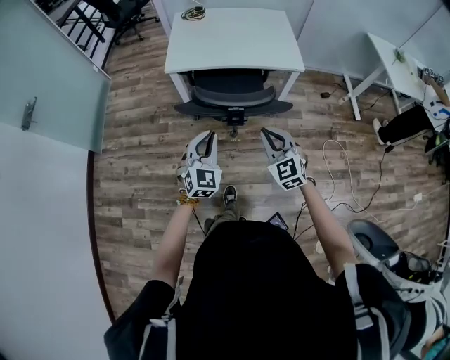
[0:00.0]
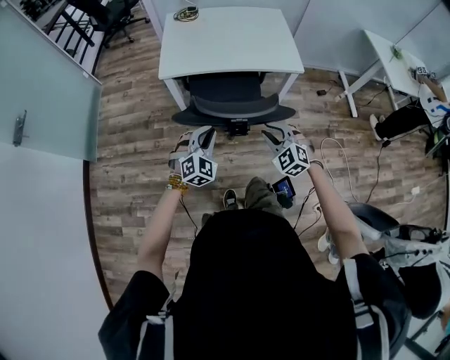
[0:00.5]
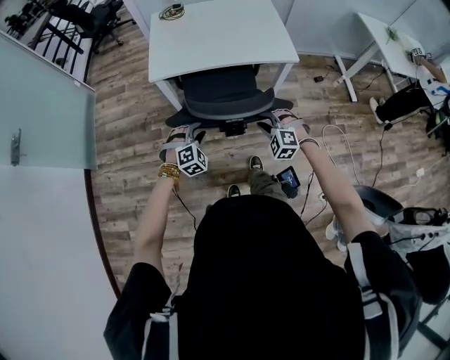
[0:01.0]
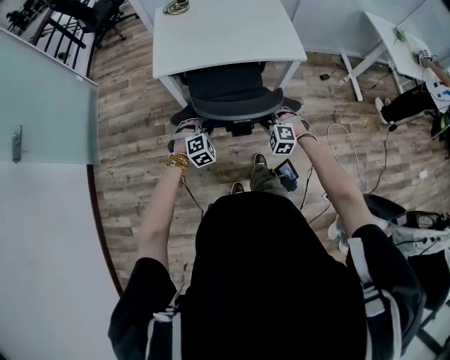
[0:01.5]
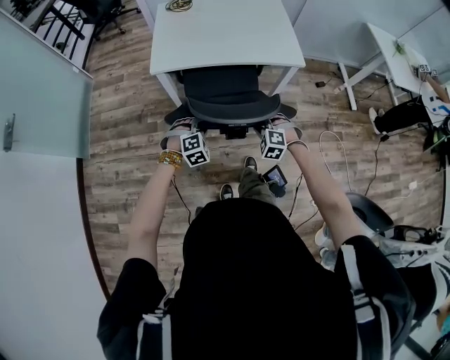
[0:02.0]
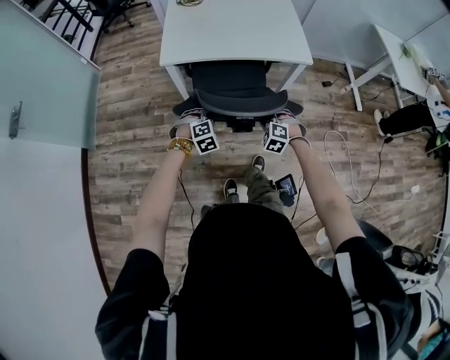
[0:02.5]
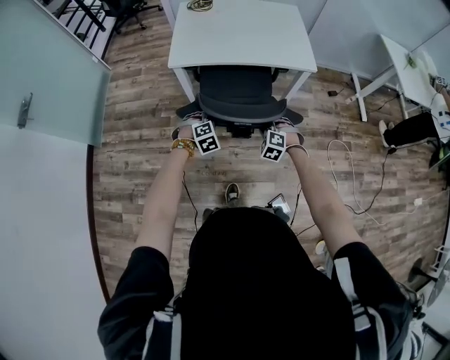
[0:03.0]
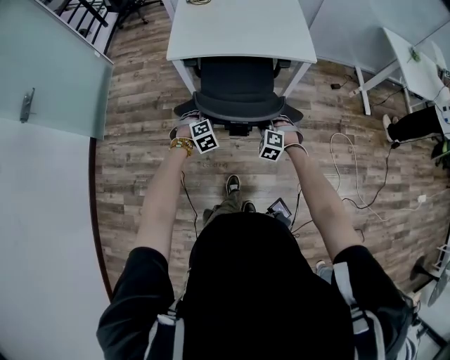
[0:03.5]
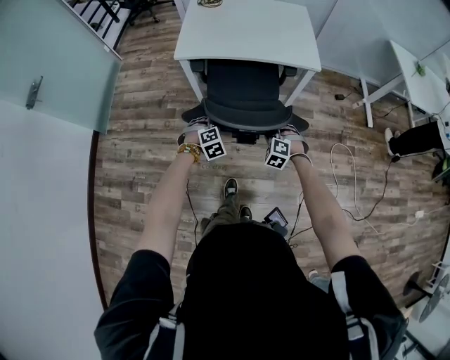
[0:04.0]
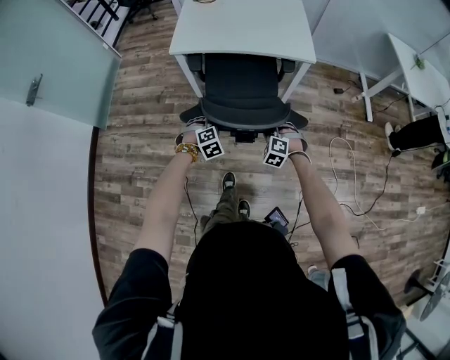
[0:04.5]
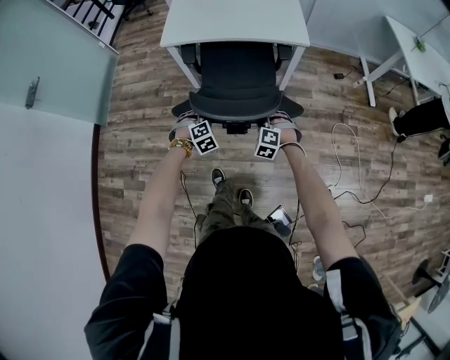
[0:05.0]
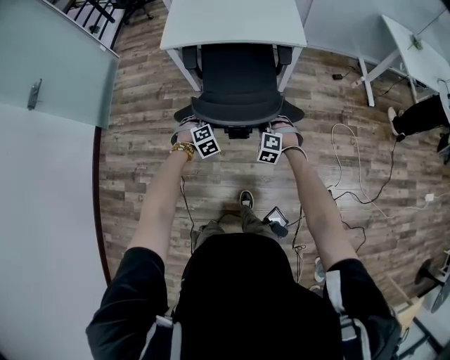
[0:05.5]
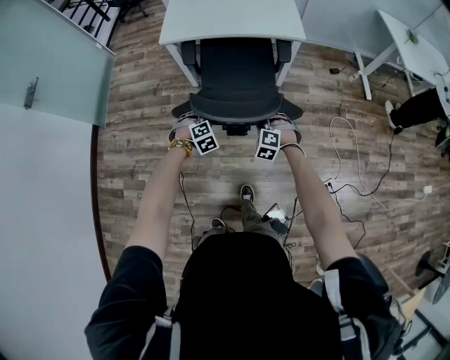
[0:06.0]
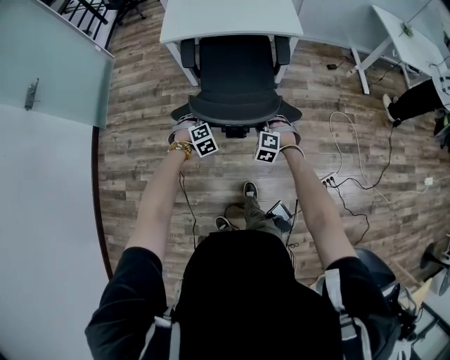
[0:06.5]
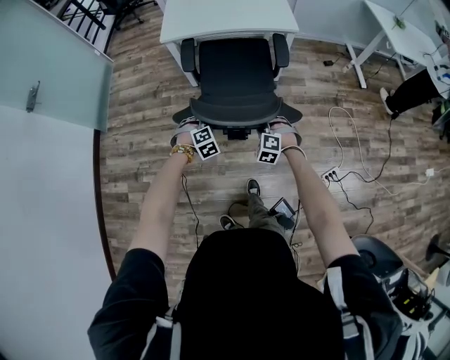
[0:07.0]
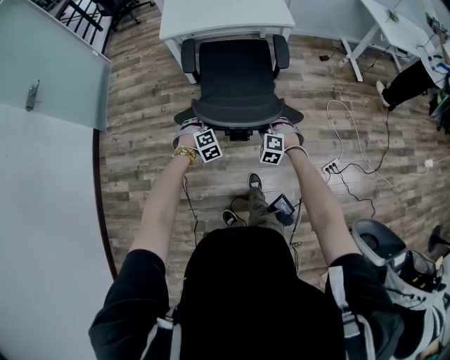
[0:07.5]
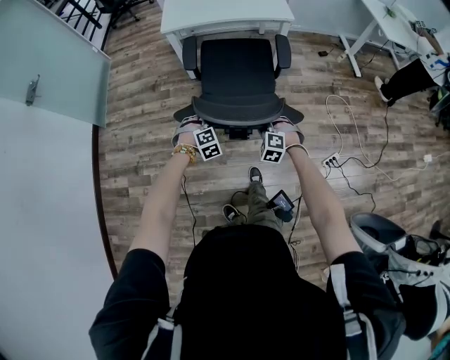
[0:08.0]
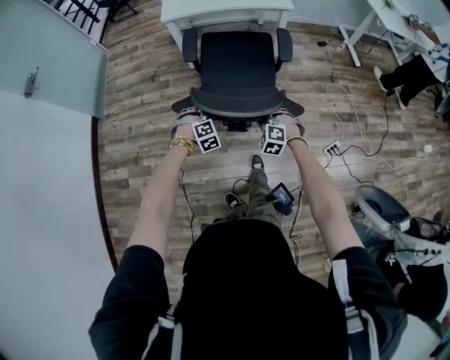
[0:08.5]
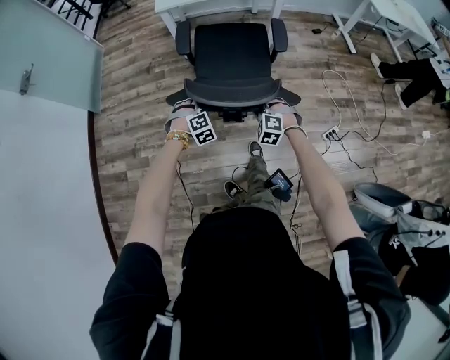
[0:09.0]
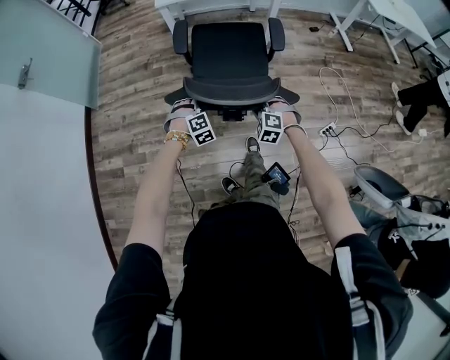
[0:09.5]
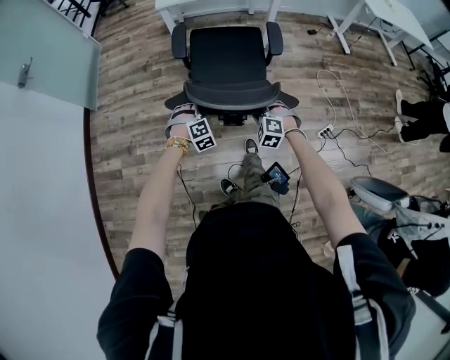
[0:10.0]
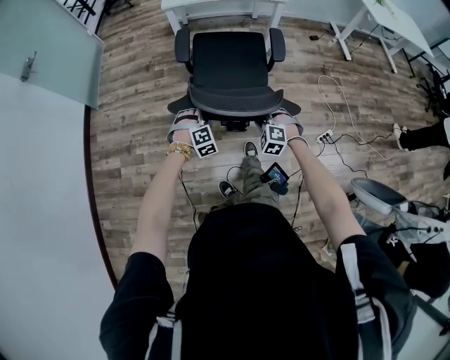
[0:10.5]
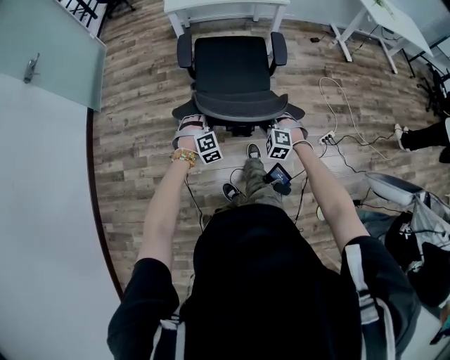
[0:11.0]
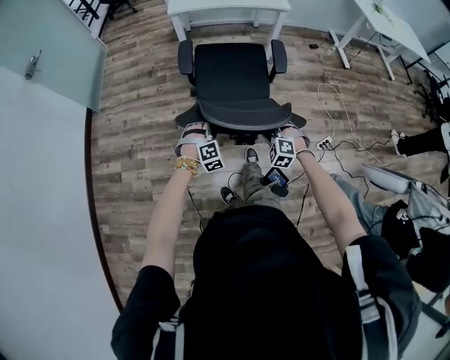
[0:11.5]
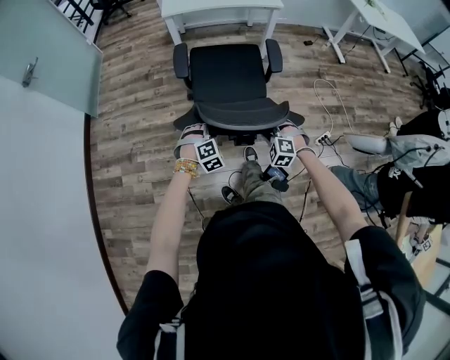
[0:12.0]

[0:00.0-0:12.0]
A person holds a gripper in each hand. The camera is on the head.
0:00.0 to 0:02.0: The two grippers go roughly 25 cm downward and forward. The right gripper tilts its fingers approximately 30 degrees downward. The left gripper angles its fingers downward, by some 40 degrees, and opens its fingers.
0:02.0 to 0:04.0: Both grippers travel together backward, approximately 10 cm.
0:04.0 to 0:06.0: Both grippers travel together backward, roughly 10 cm.
0:06.0 to 0:08.0: The two grippers go approximately 15 cm backward.
0:08.0 to 0:10.0: Both grippers travel together backward and to the left, roughly 15 cm.
0:10.0 to 0:12.0: Both grippers move backward, roughly 10 cm.

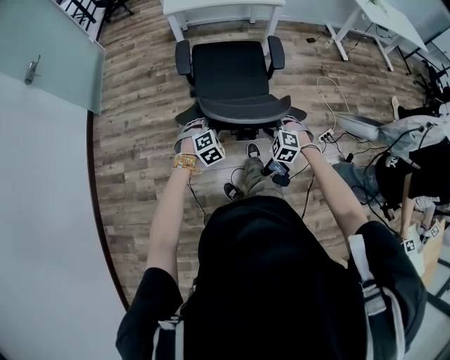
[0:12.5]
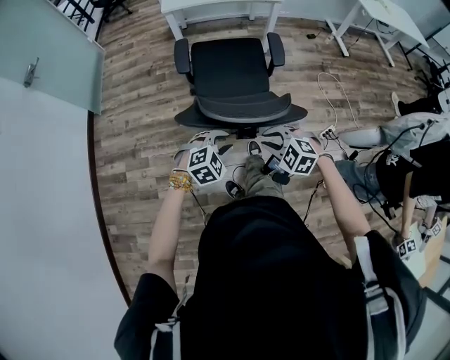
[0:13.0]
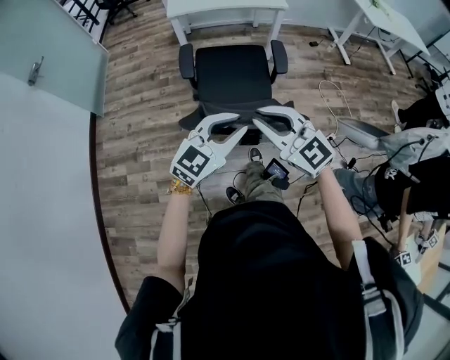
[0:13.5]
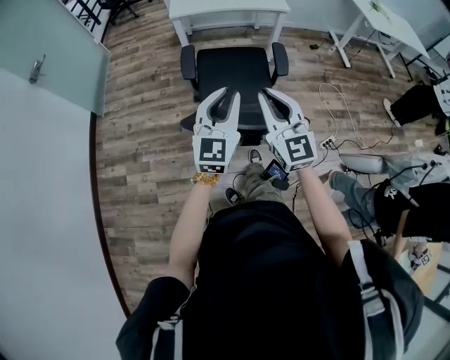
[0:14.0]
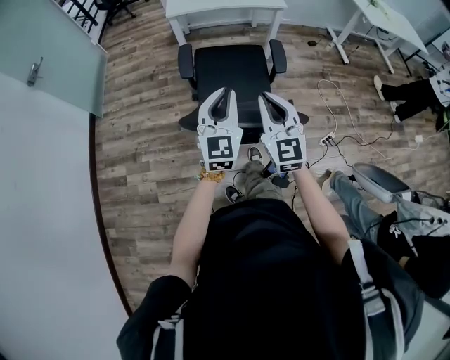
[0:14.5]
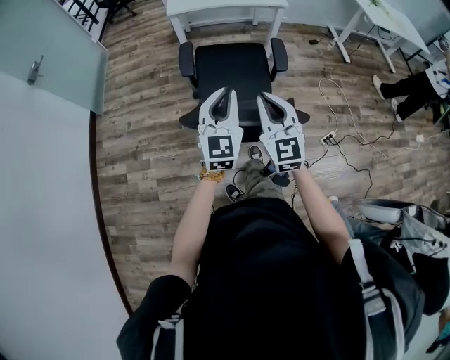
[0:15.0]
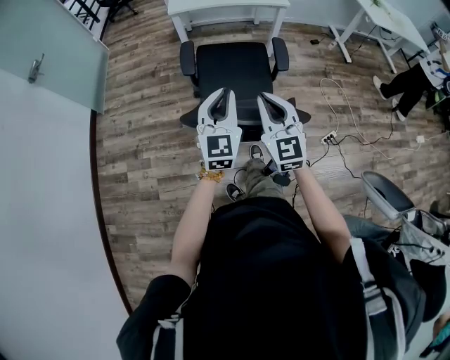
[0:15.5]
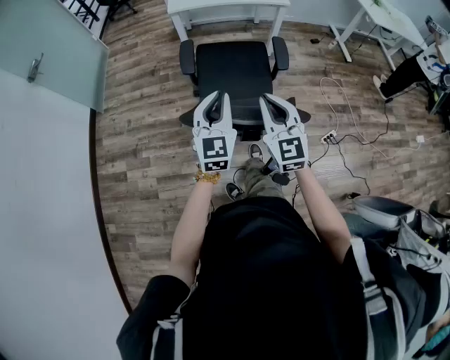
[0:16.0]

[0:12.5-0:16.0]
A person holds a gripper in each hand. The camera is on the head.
0:12.5 to 0:14.5: Both grippers move upward, roughly 30 cm. The right gripper tips its fingers upward by approximately 50 degrees, and closes its fingers. The left gripper tilts its fingers approximately 60 degrees upward, and closes.
0:14.5 to 0:16.0: There are only small adjustments of the grippers.

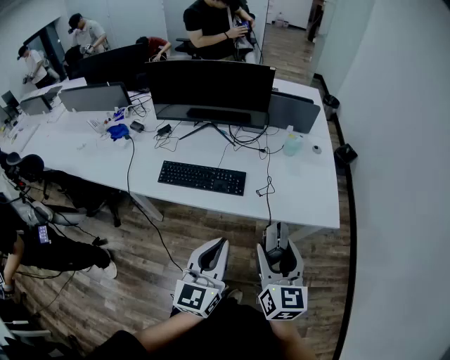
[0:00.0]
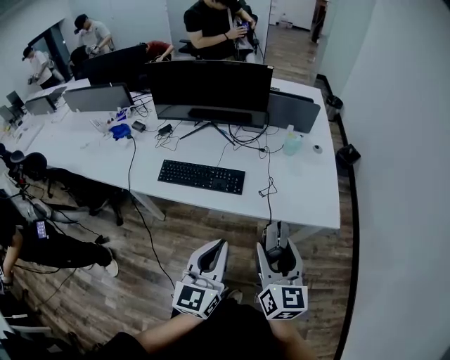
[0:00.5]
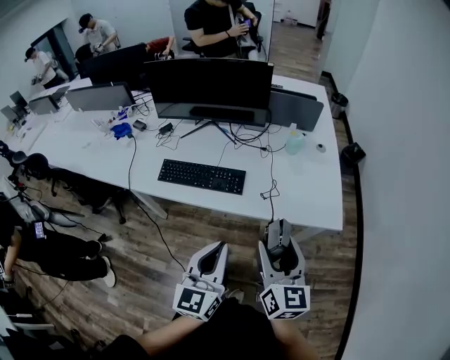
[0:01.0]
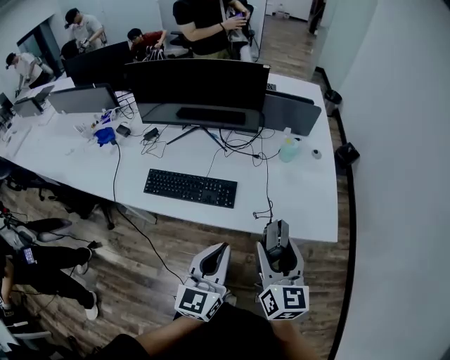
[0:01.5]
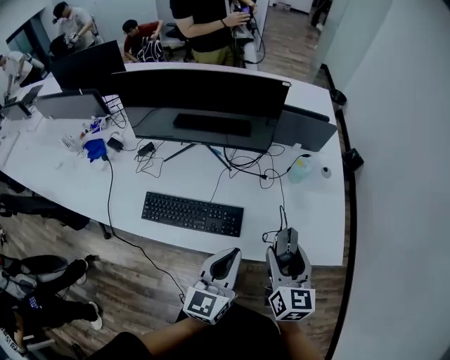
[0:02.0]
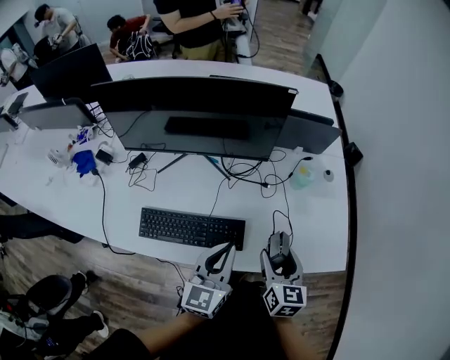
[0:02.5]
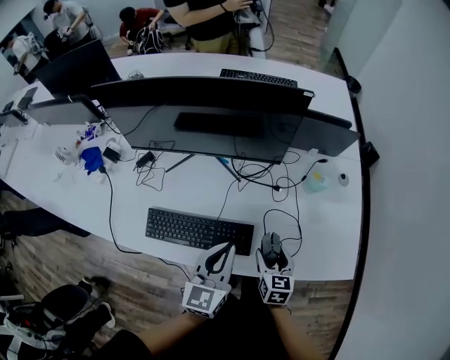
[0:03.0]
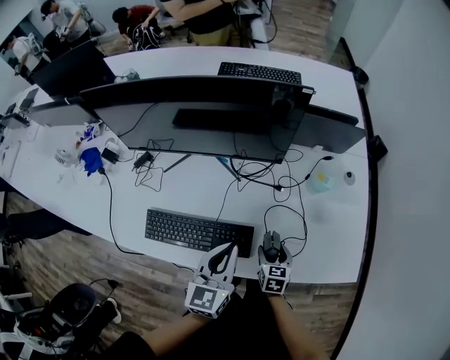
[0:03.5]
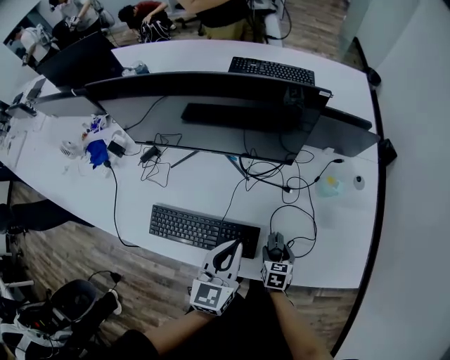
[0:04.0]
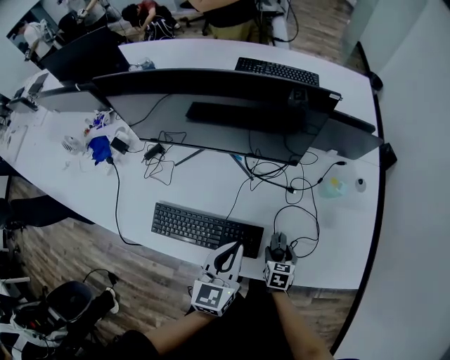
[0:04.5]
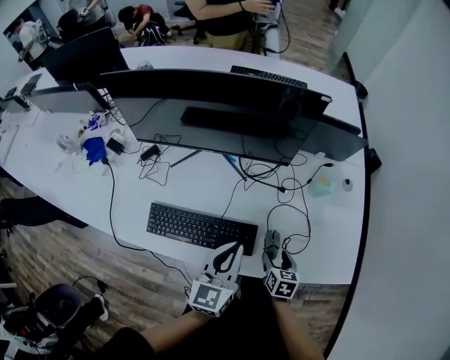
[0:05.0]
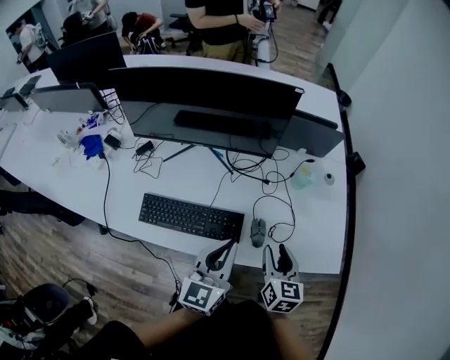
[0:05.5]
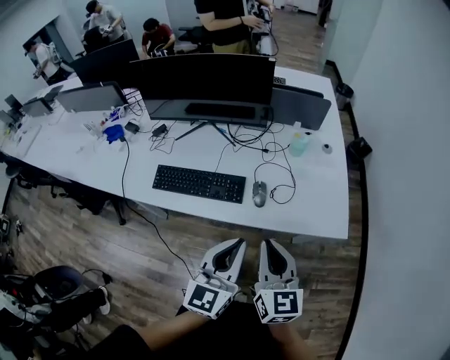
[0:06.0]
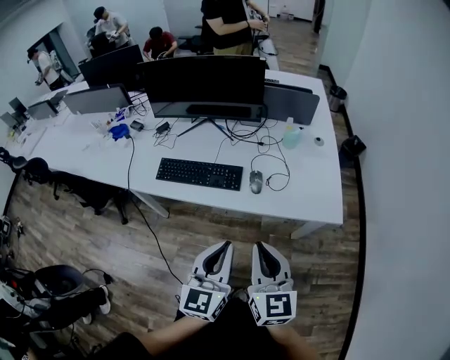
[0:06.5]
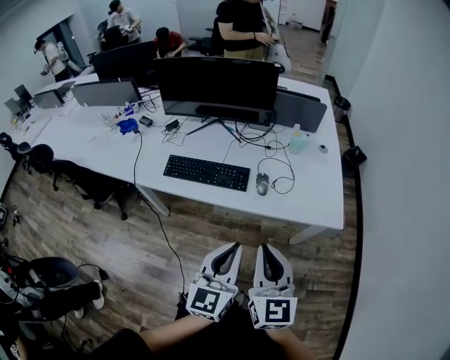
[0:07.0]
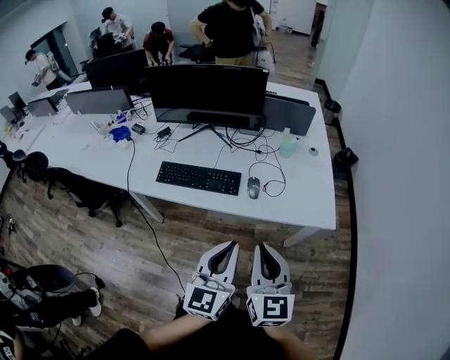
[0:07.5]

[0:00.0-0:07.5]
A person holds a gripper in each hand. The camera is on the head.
0:00.0 to 0:02.0: The two grippers go about 20 cm forward.
0:02.0 to 0:04.0: The right gripper moves downward, about 30 cm, and tips its fingers downward by about 40 degrees. Meanwhile the left gripper goes approximately 15 cm forward and downward.
0:04.0 to 0:05.5: The left gripper travels backward and upward by approximately 10 cm, while the right gripper is displaced upward by approximately 25 cm, and changes its angle by about 30 degrees.
0:05.5 to 0:07.5: The left gripper travels backward by approximately 30 cm. The right gripper travels backward and upward by some 35 cm, turns by about 30 degrees, and closes.

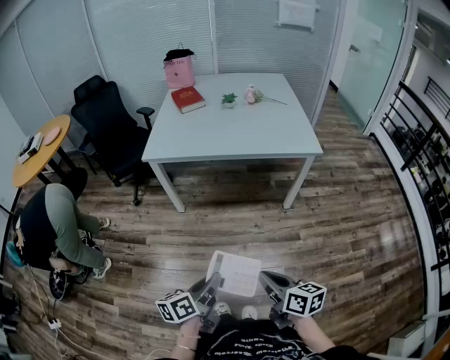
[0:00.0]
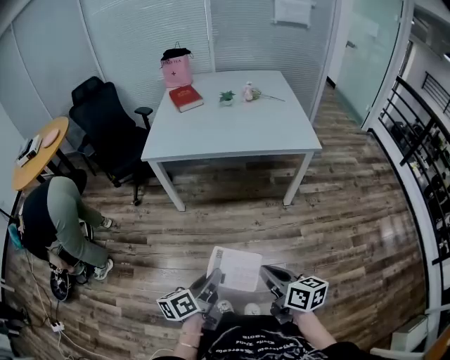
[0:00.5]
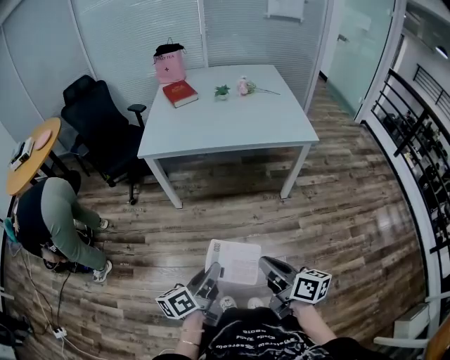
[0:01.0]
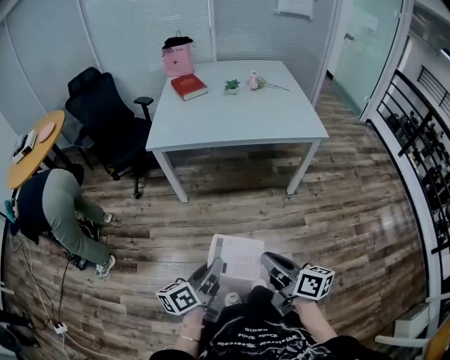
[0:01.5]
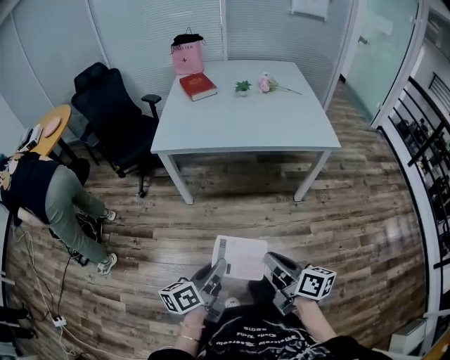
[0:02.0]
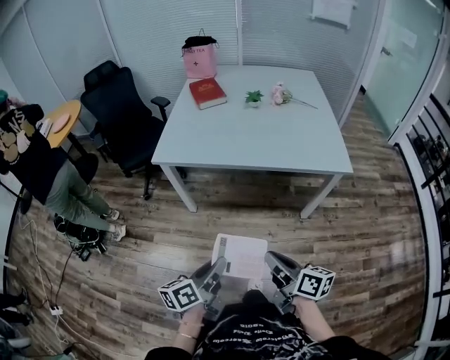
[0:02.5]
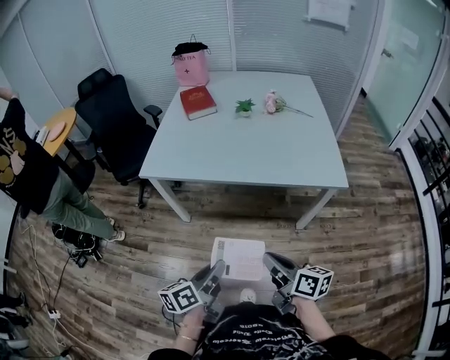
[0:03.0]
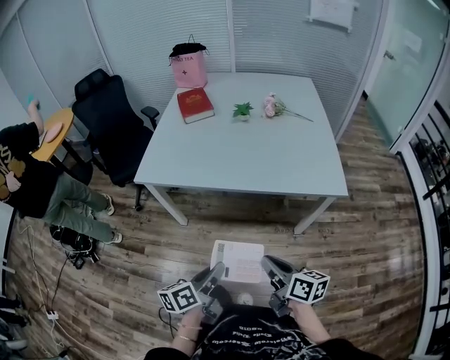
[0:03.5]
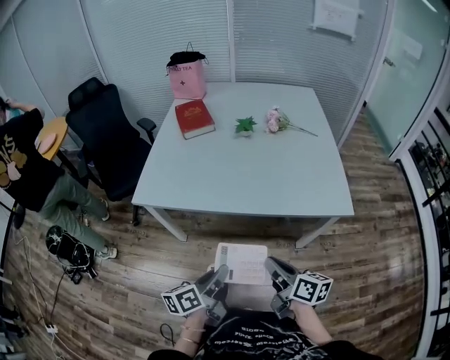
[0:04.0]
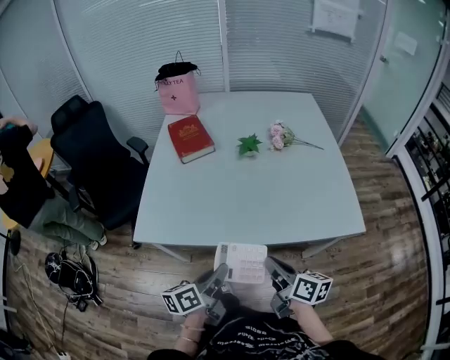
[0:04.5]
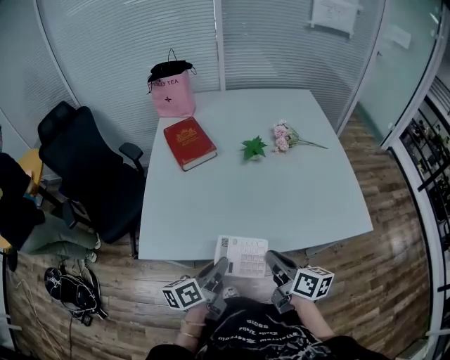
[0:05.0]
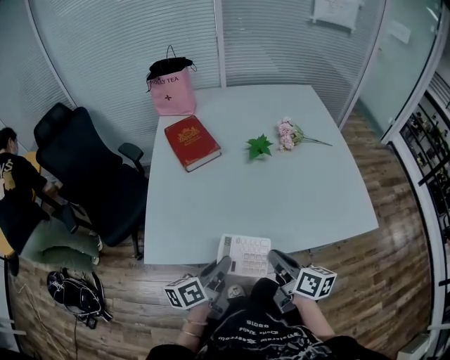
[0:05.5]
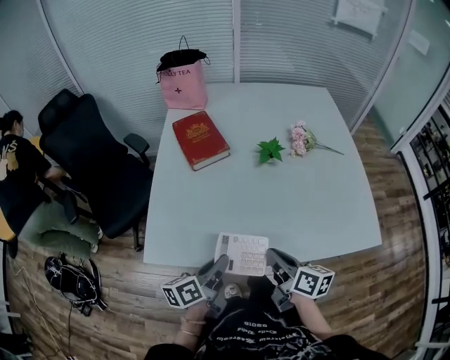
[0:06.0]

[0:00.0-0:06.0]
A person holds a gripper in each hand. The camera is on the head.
0:00.0 to 0:02.0: Both grippers travel together forward and to the left, some 10 cm.
0:02.0 to 0:04.0: Both grippers travel together forward, about 30 cm.
0:04.0 to 0:06.0: Both grippers move forward and to the left, roughly 30 cm.
